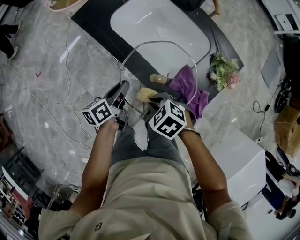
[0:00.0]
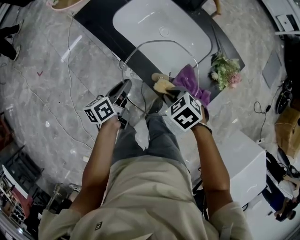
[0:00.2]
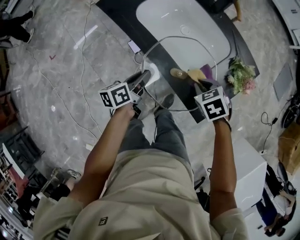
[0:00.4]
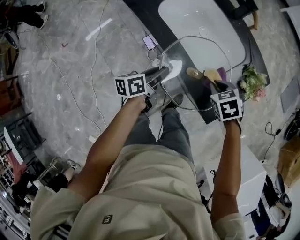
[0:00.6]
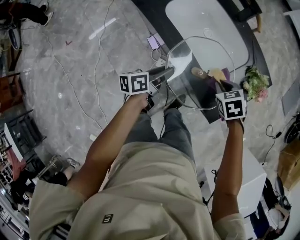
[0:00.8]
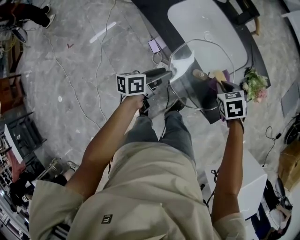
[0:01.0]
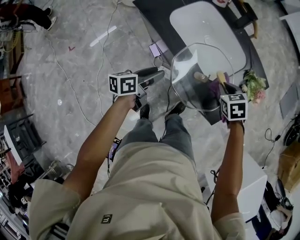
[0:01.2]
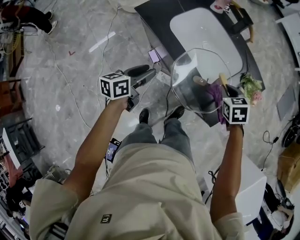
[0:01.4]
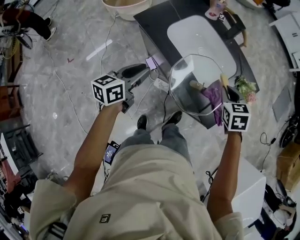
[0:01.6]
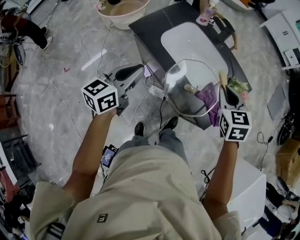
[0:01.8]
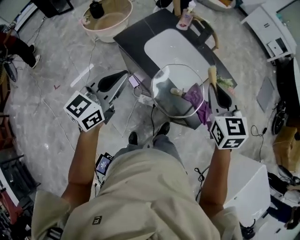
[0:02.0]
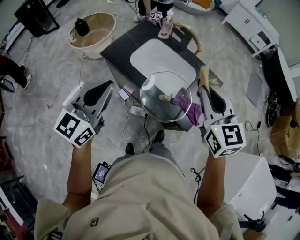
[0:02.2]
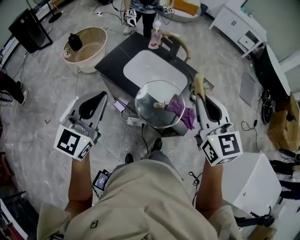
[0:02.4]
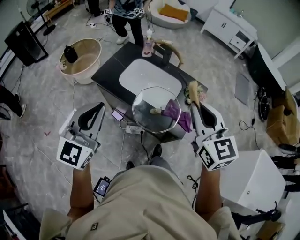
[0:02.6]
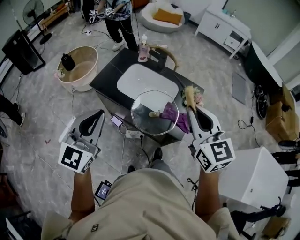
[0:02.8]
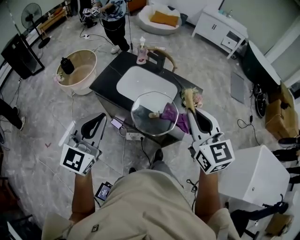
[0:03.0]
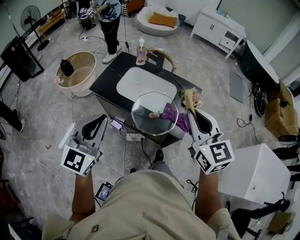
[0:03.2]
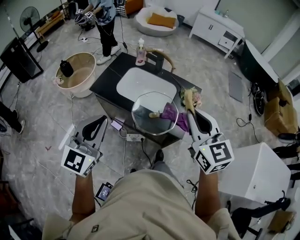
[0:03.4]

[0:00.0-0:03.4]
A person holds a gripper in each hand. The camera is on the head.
0:00.0 to 0:01.6: The two grippers go some 15 cm upward. The left gripper turns by about 30 degrees, and opens, then closes again. The right gripper changes its angle by approximately 40 degrees.
0:01.6 to 0:03.4: The left gripper goes roughly 30 cm upward, rotates around the line of its fingers by approximately 50 degrees, clockwise from behind, and closes. Meanwhile the right gripper moves upward and backward, roughly 35 cm, and angles its fingers upward, by roughly 40 degrees.

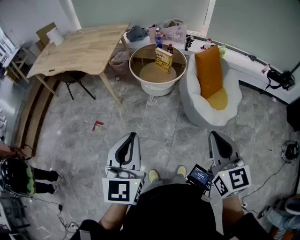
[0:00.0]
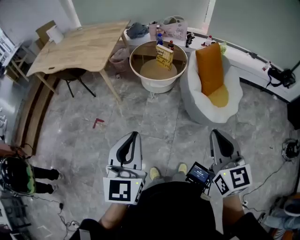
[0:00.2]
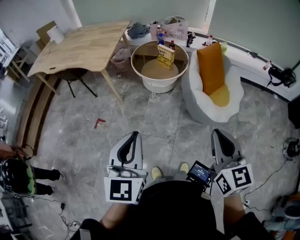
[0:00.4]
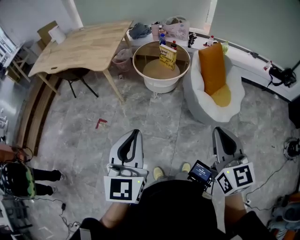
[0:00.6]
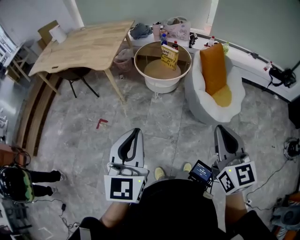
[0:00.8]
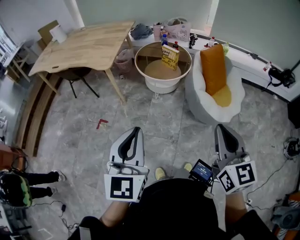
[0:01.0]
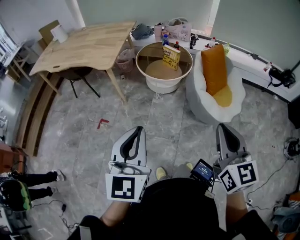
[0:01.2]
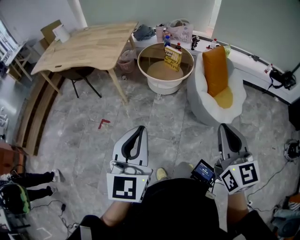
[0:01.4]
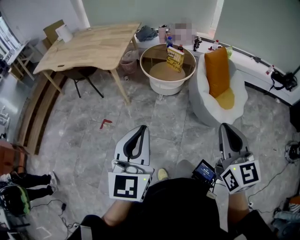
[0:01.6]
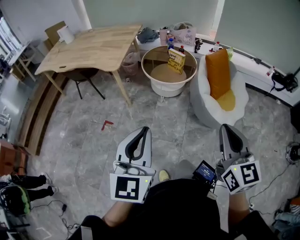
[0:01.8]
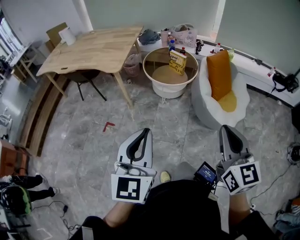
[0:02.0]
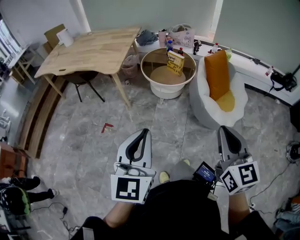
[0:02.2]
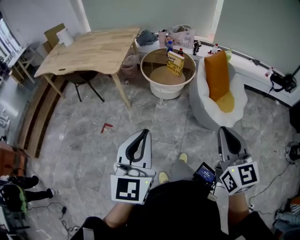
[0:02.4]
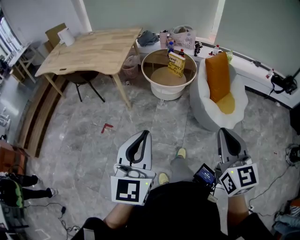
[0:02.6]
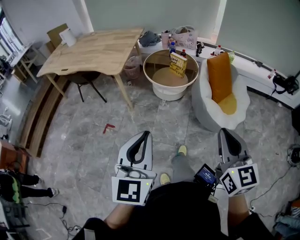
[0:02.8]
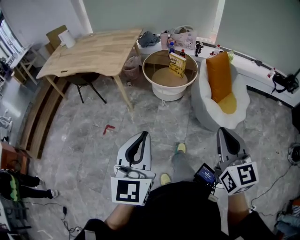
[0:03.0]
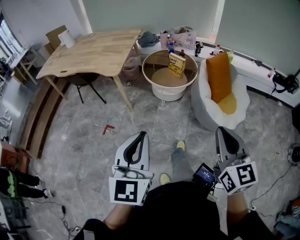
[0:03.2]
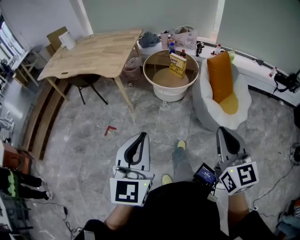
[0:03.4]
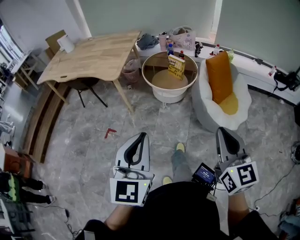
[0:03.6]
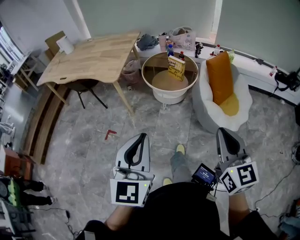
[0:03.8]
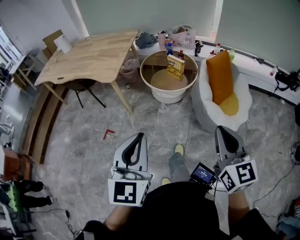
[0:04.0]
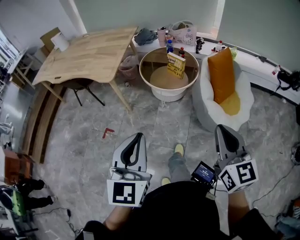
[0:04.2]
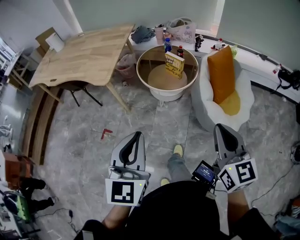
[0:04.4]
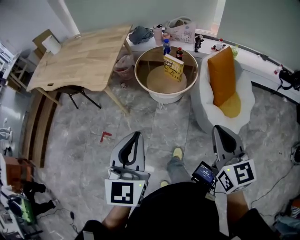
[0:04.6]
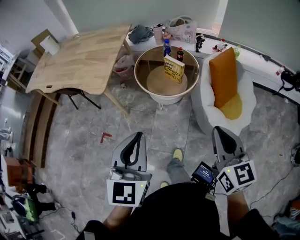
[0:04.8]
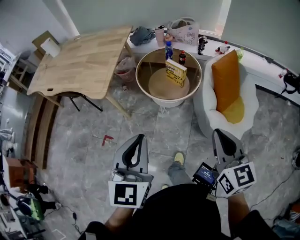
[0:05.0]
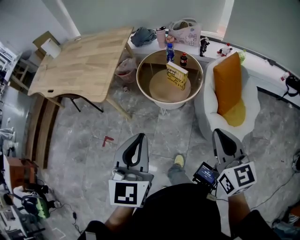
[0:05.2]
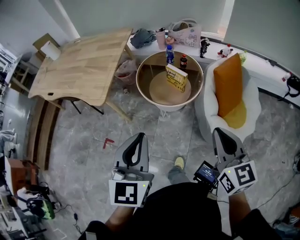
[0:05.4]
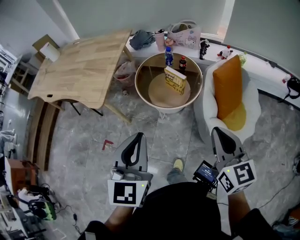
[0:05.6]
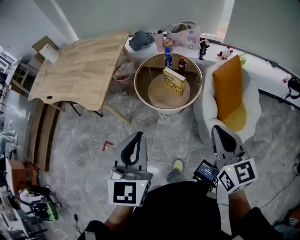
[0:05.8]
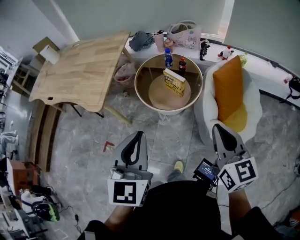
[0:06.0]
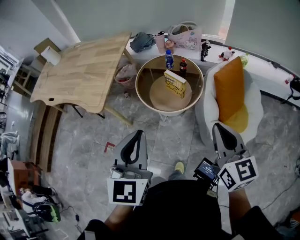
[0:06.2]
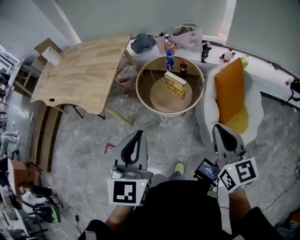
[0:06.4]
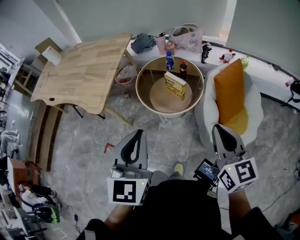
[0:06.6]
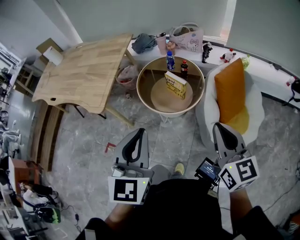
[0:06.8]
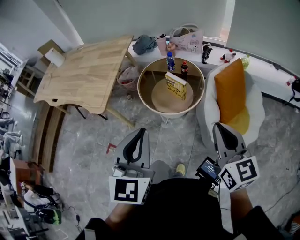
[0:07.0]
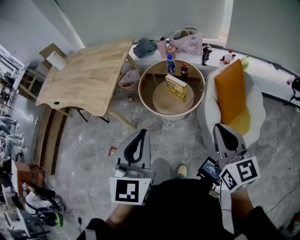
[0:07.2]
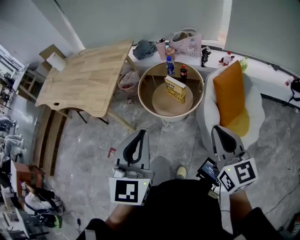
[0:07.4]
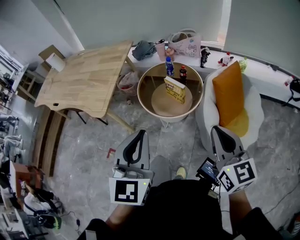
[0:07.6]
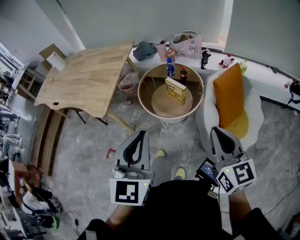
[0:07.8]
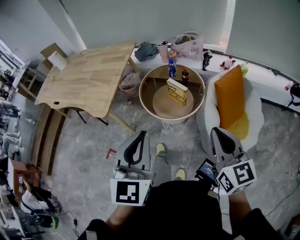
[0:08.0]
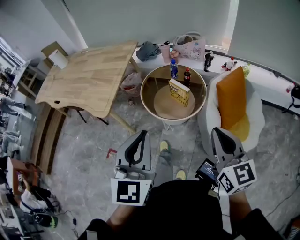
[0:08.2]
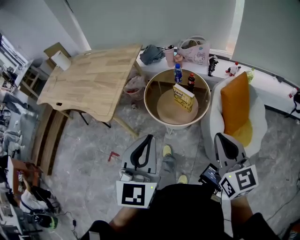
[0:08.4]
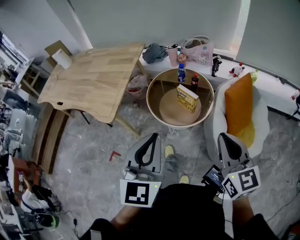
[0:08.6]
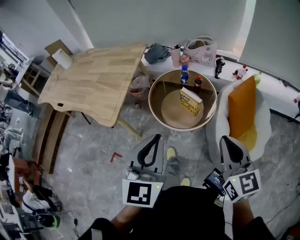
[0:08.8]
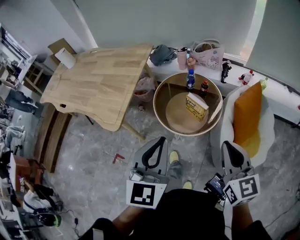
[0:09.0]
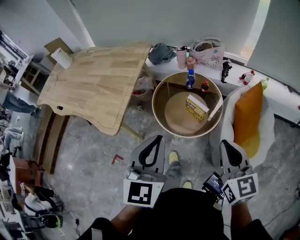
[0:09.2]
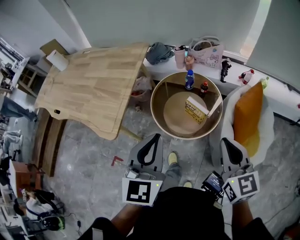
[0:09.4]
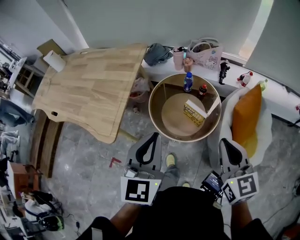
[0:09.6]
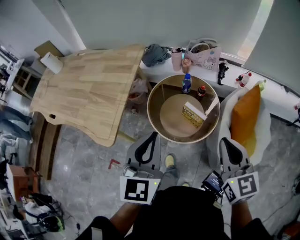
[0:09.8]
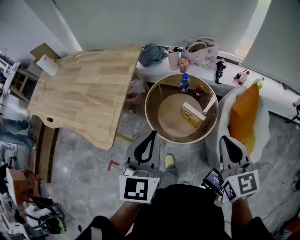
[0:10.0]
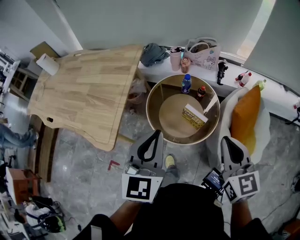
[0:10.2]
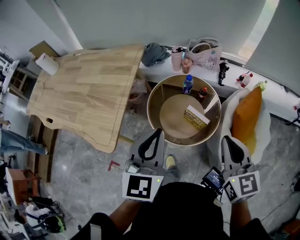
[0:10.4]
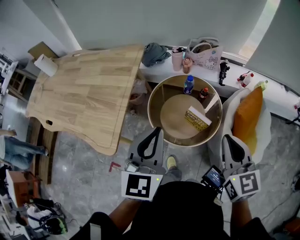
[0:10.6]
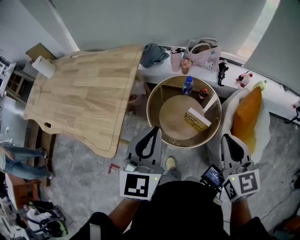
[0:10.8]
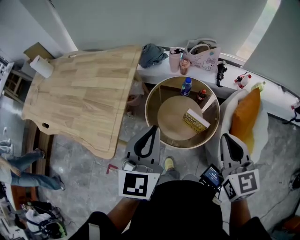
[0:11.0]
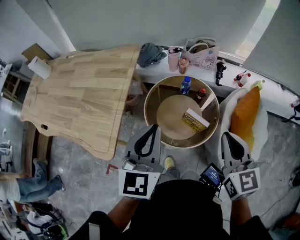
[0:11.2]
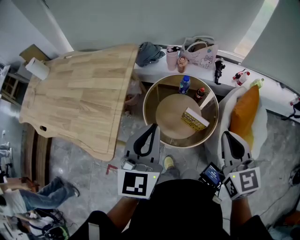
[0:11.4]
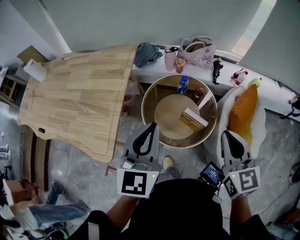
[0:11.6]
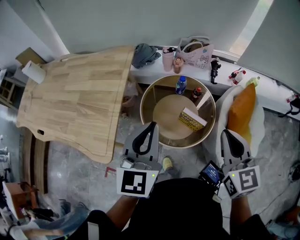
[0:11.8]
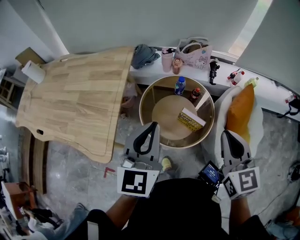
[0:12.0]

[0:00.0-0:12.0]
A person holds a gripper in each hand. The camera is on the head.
0:00.0 to 0:01.6: The grippers both shift to the left by roughly 5 cm.
0:01.6 to 0:03.0: The two grippers keep their place.
0:03.0 to 0:04.4: The grippers both shift forward by roughly 15 cm.
0:04.4 to 0:06.0: The left gripper heads forward and to the right, covering roughly 20 cm, while the right gripper heads forward, covering approximately 20 cm.
0:06.0 to 0:07.6: The grippers make only small movements.
0:07.6 to 0:09.0: The left gripper heads forward, covering roughly 10 cm. Meanwhile the right gripper moves forward and to the left, roughly 10 cm.
0:09.0 to 0:10.4: The two grippers go some 15 cm forward.
0:10.4 to 0:12.0: The left gripper heads forward, covering approximately 5 cm.

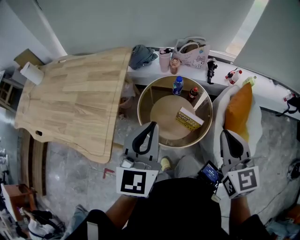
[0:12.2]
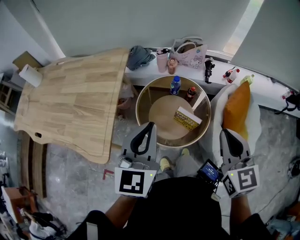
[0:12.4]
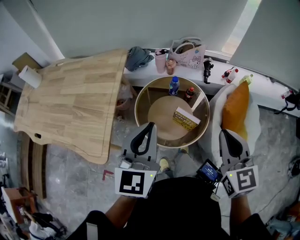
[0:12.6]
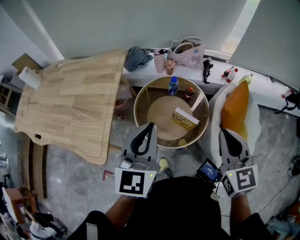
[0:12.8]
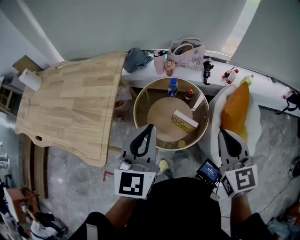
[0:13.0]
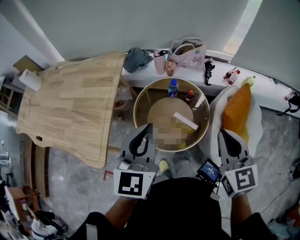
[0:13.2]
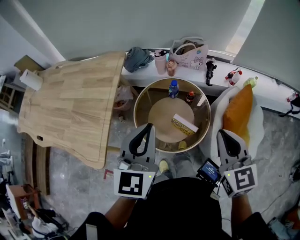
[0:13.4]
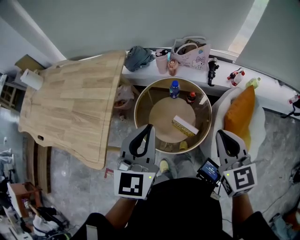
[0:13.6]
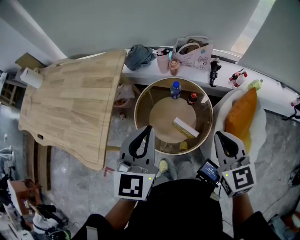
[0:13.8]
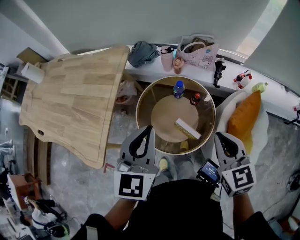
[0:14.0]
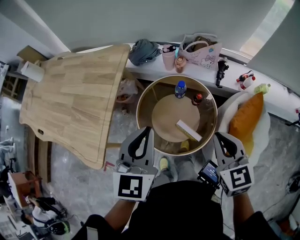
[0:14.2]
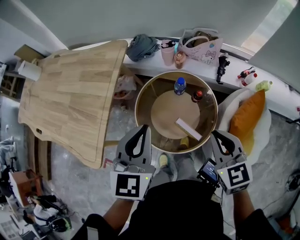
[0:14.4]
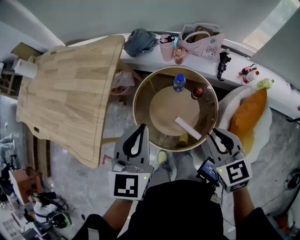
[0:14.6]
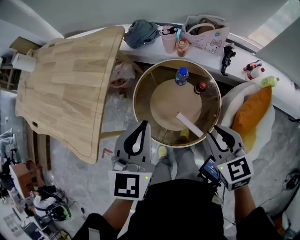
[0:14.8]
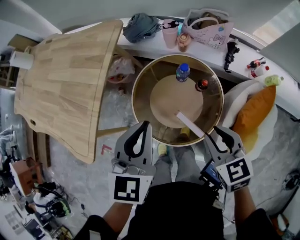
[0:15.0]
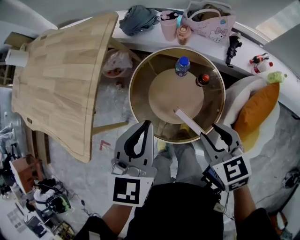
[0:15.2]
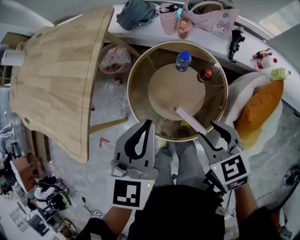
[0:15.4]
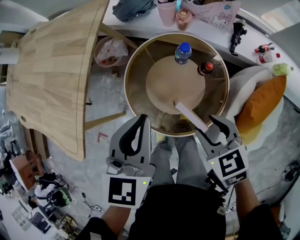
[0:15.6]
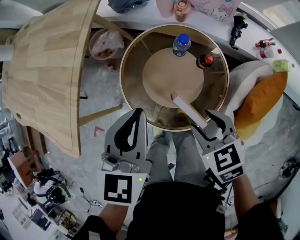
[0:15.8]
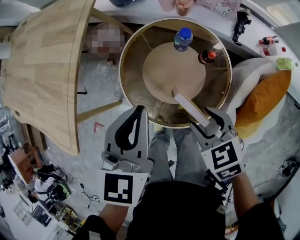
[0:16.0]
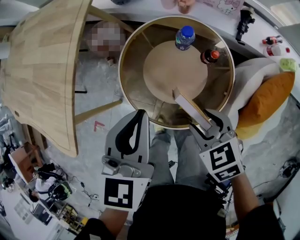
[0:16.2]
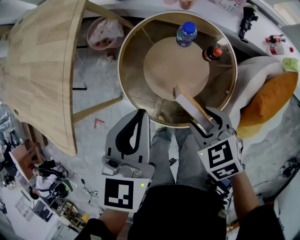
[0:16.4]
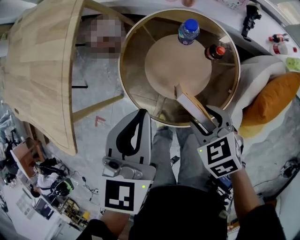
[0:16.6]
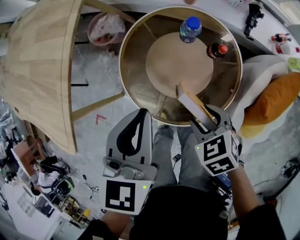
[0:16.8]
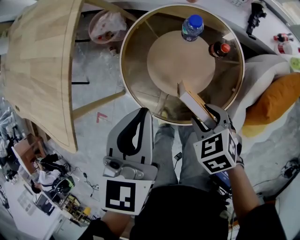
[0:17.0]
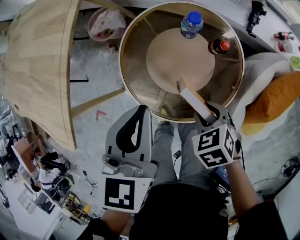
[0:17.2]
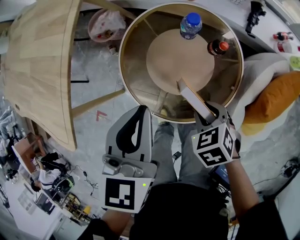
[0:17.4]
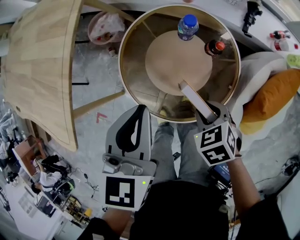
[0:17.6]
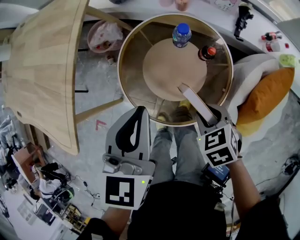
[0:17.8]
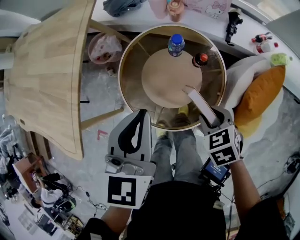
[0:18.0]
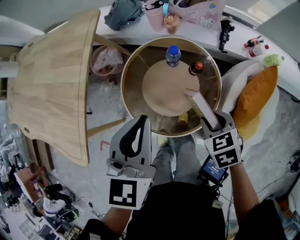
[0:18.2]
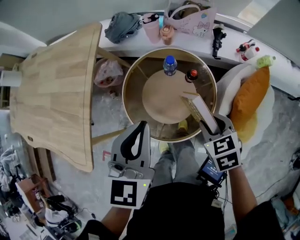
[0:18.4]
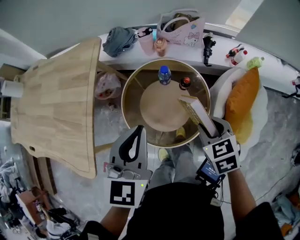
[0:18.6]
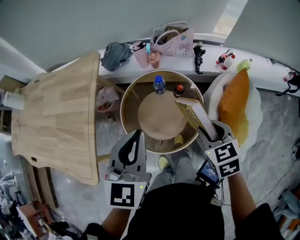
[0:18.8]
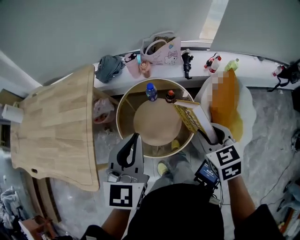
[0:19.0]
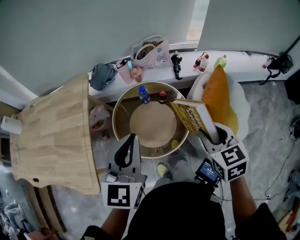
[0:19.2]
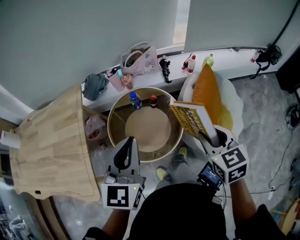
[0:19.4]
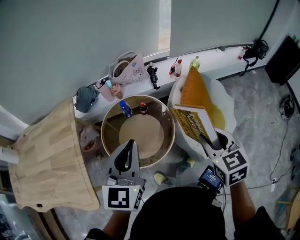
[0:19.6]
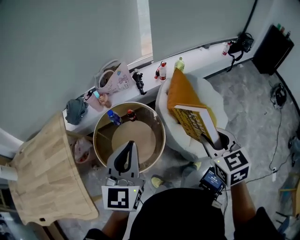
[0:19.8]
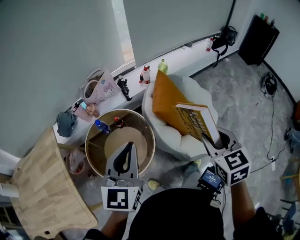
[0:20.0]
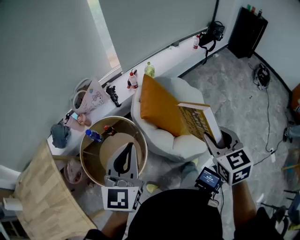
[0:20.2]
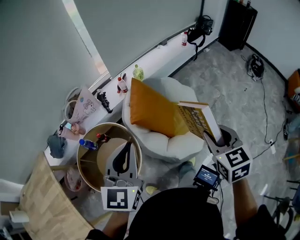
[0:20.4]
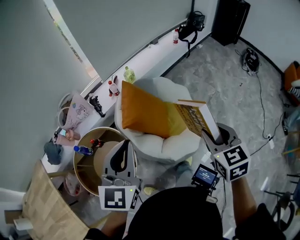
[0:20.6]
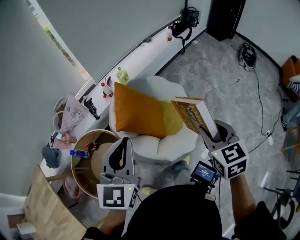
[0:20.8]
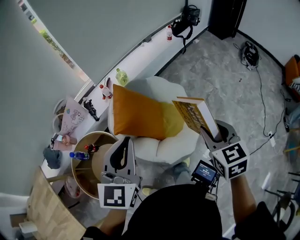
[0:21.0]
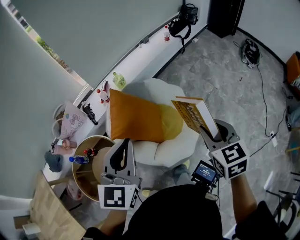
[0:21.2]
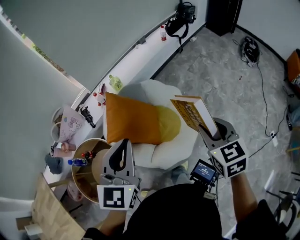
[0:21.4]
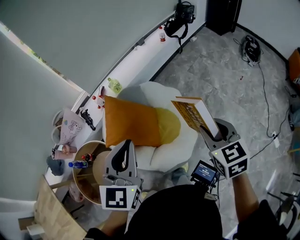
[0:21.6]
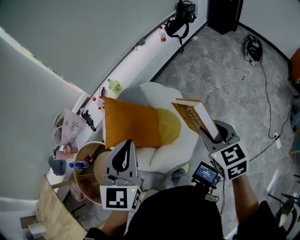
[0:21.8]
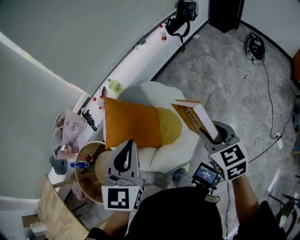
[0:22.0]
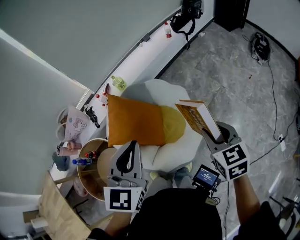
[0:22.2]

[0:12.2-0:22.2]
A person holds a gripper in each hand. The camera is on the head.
0:12.2 to 0:13.6: The left gripper moves forward and to the right, some 10 cm, while the right gripper travels forward by about 10 cm.
0:13.6 to 0:15.0: The two grippers go roughly 15 cm downward and forward. The right gripper rotates some 30 degrees, and opens up.
0:15.0 to 0:16.4: The grippers both shift downward by some 15 cm. The right gripper rotates roughly 20 degrees, and opens.
0:16.4 to 0:18.0: The left gripper shifts about 5 cm upward. The right gripper heads to the right, covering about 5 cm.
0:18.0 to 0:19.4: The left gripper is displaced upward by about 15 cm, and rotates approximately 30 degrees; the right gripper moves upward, about 30 cm, and rotates roughly 50 degrees.
0:19.4 to 0:20.8: The right gripper shifts by roughly 40 cm, and turns by about 40 degrees, while the left gripper shifts by roughly 40 cm, and rotates some 30 degrees.
0:20.8 to 0:22.2: Both grippers move to the right and forward, approximately 20 cm.
